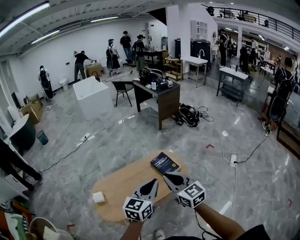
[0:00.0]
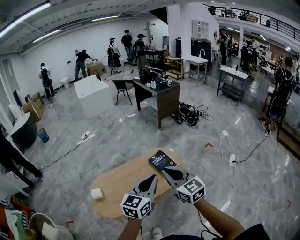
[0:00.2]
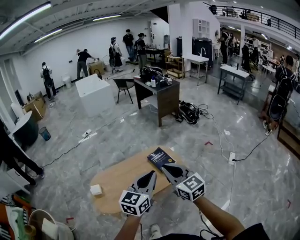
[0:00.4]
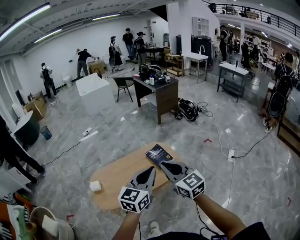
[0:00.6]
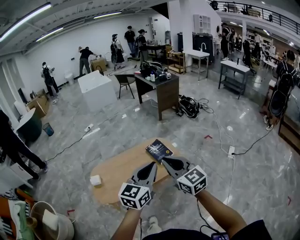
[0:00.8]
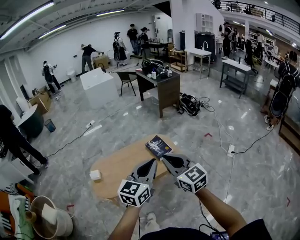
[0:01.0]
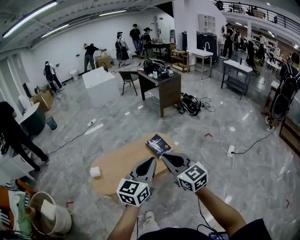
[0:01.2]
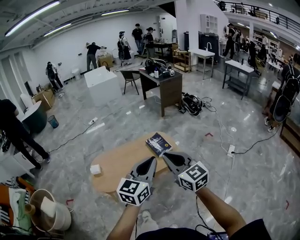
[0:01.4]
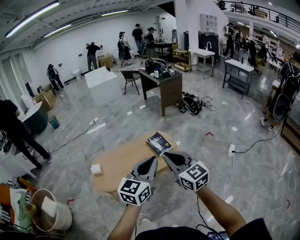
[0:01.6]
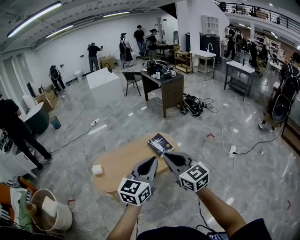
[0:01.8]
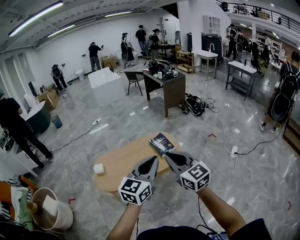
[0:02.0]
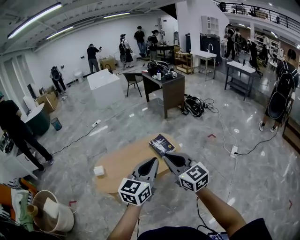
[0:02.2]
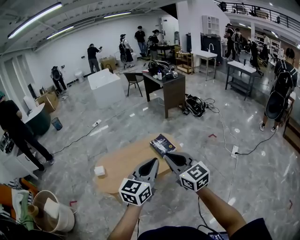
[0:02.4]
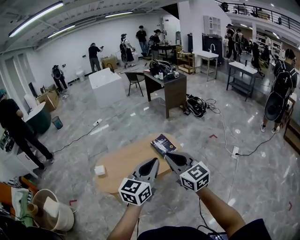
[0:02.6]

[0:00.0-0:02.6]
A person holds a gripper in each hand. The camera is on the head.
0:00.0 to 0:01.2: The right gripper moves backward and to the right, roughly 15 cm. Meanwhile the left gripper is displaced backward, to the right and upward by about 20 cm.
0:01.2 to 0:02.6: The grippers move only a little.

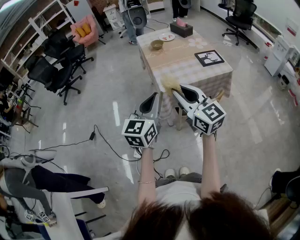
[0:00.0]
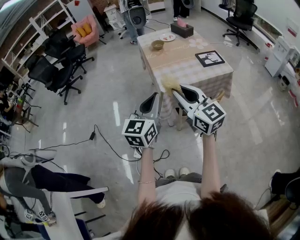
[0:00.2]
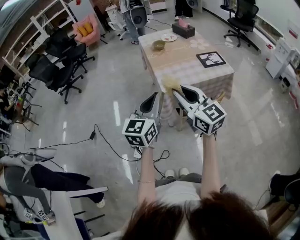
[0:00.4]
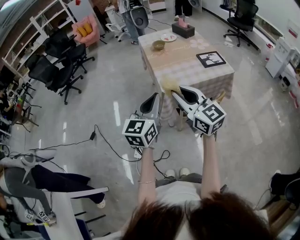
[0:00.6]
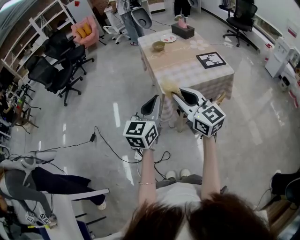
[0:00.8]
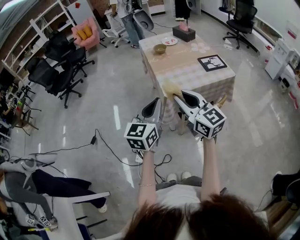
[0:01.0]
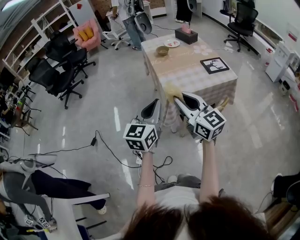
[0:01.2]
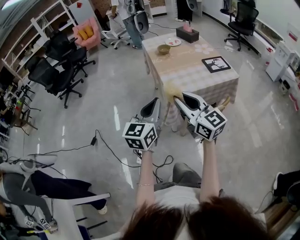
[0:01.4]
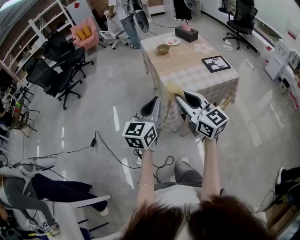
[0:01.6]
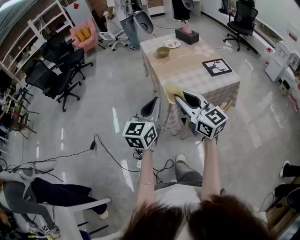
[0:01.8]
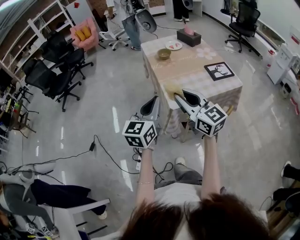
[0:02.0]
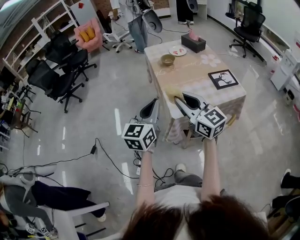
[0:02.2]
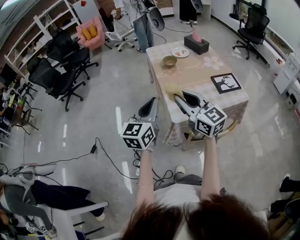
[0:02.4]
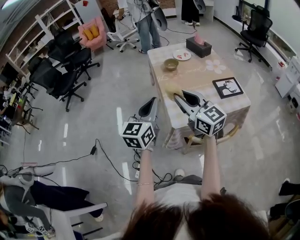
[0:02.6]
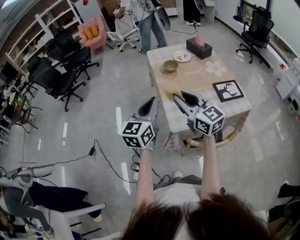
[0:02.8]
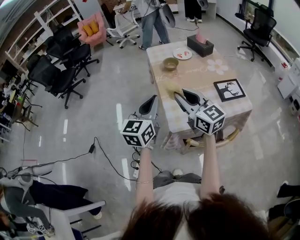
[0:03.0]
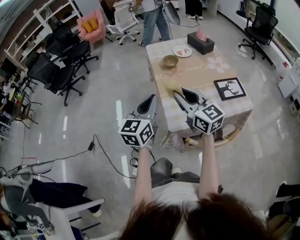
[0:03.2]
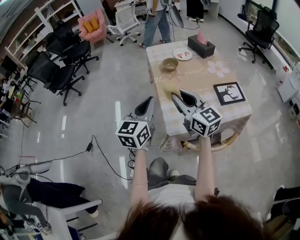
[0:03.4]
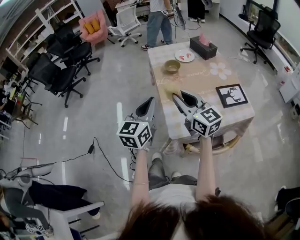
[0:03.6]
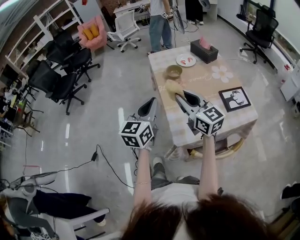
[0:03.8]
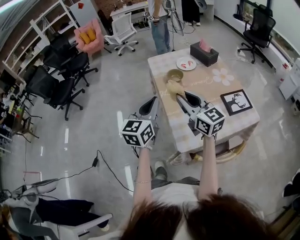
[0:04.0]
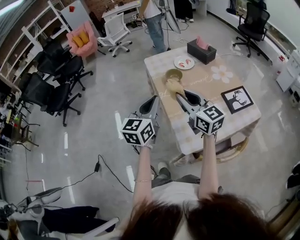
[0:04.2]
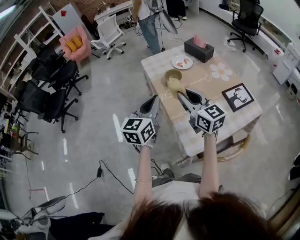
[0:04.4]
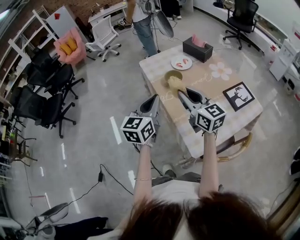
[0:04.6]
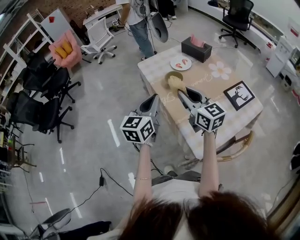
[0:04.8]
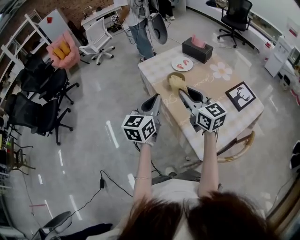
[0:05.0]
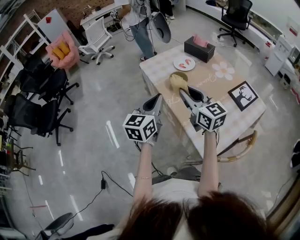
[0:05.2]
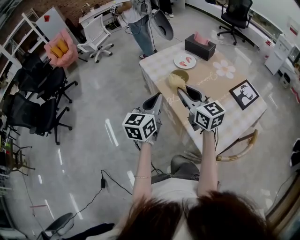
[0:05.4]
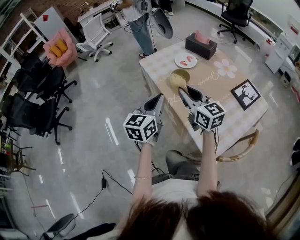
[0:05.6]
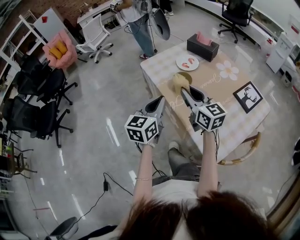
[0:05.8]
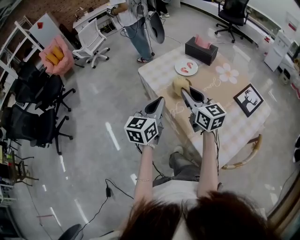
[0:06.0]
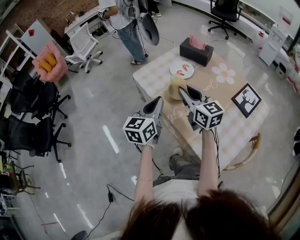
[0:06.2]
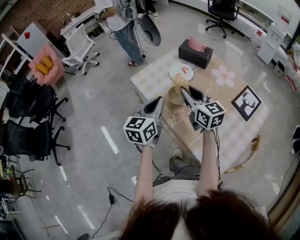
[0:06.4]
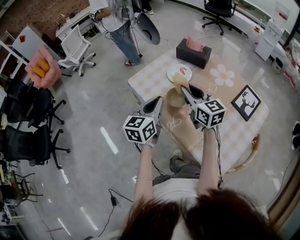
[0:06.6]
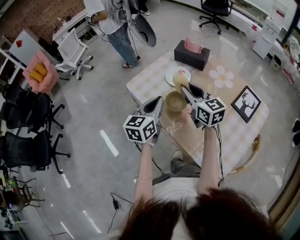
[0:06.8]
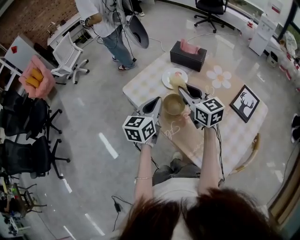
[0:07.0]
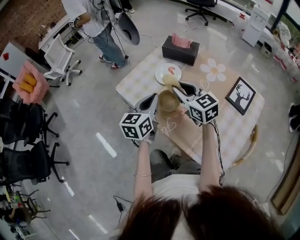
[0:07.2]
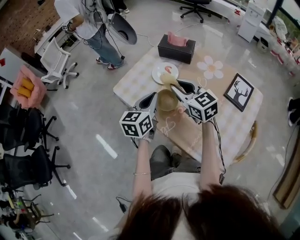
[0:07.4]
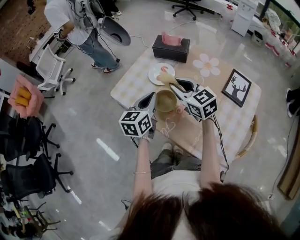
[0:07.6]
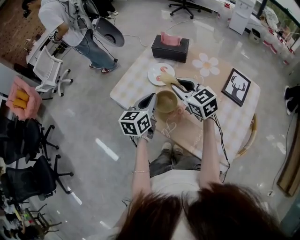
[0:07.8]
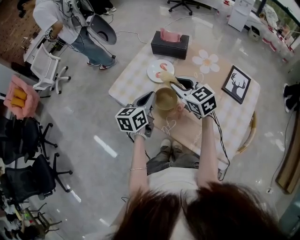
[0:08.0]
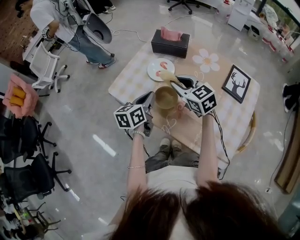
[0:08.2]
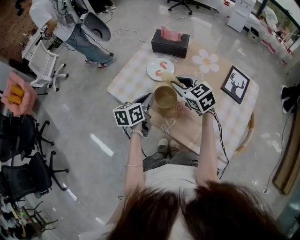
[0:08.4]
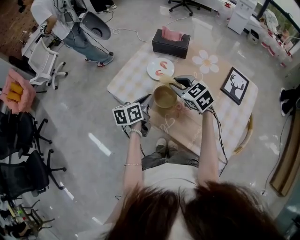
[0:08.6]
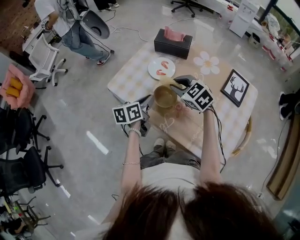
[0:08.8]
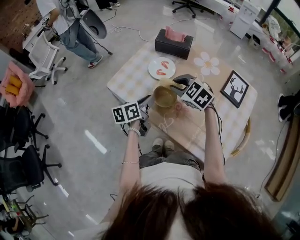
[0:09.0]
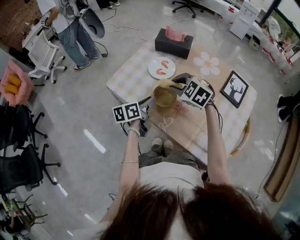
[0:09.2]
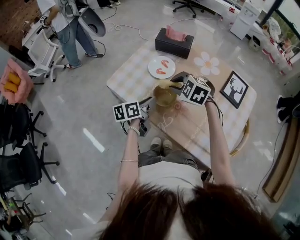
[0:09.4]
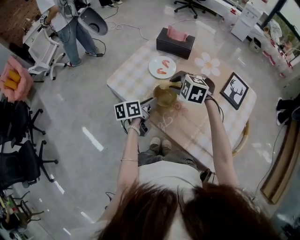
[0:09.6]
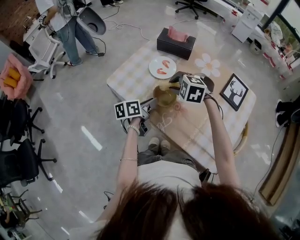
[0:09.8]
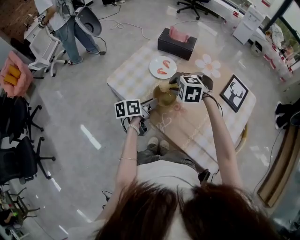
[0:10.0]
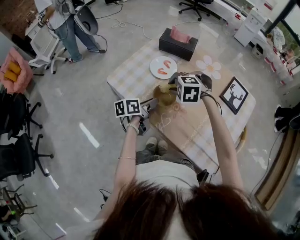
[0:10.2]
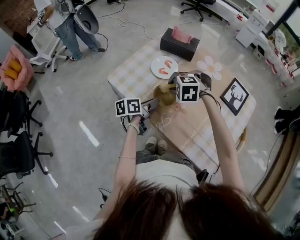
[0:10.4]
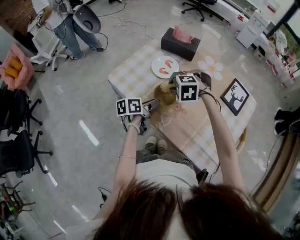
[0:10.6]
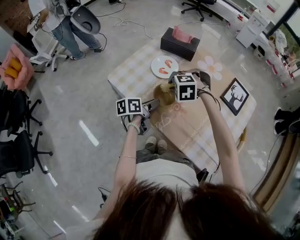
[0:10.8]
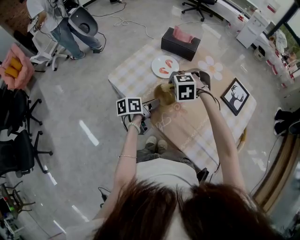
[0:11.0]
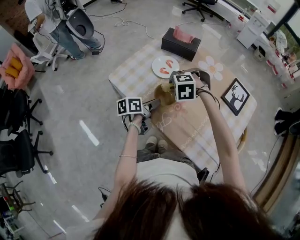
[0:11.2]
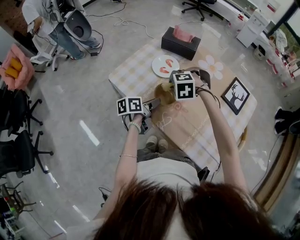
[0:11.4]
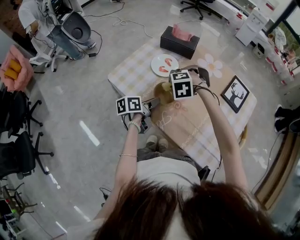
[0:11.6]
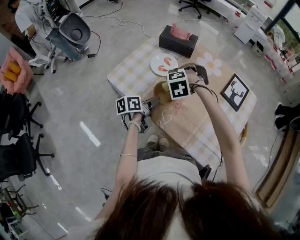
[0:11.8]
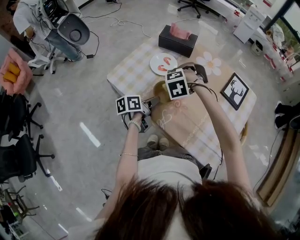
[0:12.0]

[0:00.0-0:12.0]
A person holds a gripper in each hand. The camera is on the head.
0:00.0 to 0:01.6: The left gripper shifts by roughly 5 cm. The right gripper shifts by some 5 cm.
0:01.6 to 0:03.0: Both grippers move forward, roughly 20 cm.
0:03.0 to 0:04.4: Both grippers move forward, about 15 cm.
0:04.4 to 0:06.0: The two grippers go some 15 cm forward.
0:06.0 to 0:07.6: The two grippers go some 15 cm forward.
0:07.6 to 0:09.0: Both grippers travel together downward, some 5 cm. The right gripper changes its angle by some 30 degrees. The left gripper rotates some 30 degrees.
0:09.0 to 0:10.4: The right gripper swivels some 40 degrees.
0:10.4 to 0:12.0: The grippers stay close to where they were, moving slightly.

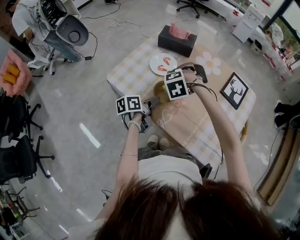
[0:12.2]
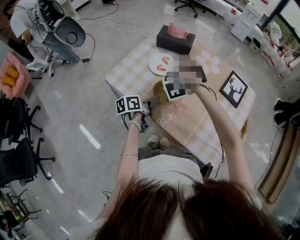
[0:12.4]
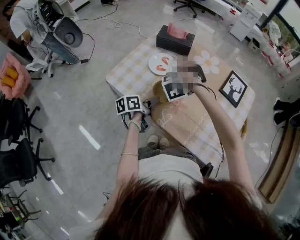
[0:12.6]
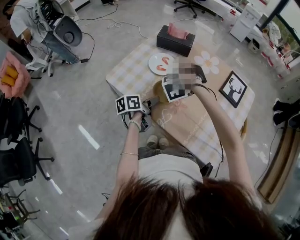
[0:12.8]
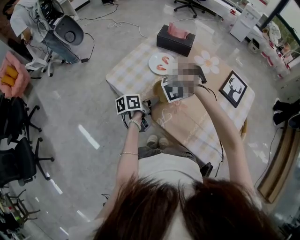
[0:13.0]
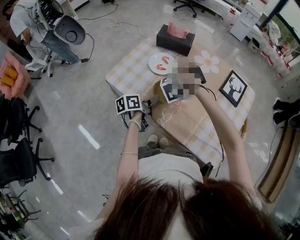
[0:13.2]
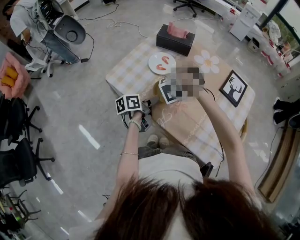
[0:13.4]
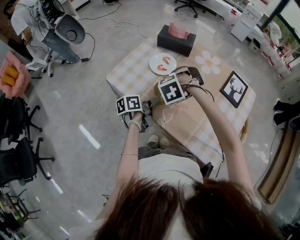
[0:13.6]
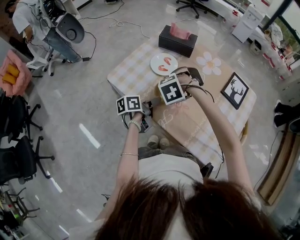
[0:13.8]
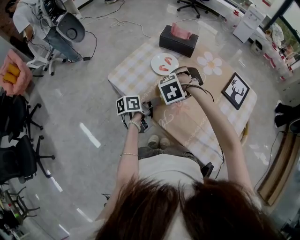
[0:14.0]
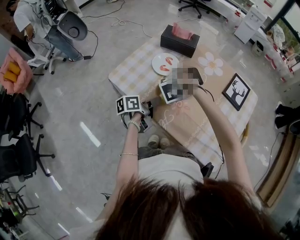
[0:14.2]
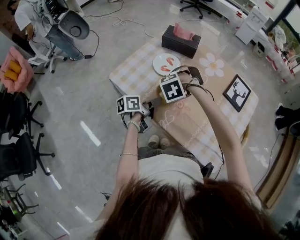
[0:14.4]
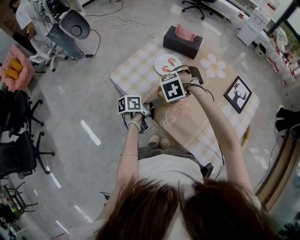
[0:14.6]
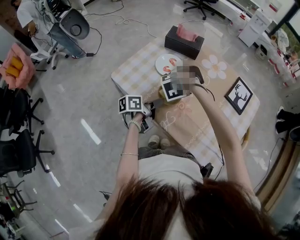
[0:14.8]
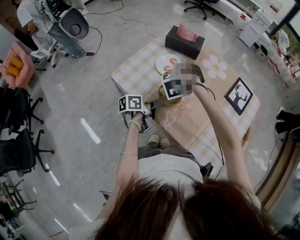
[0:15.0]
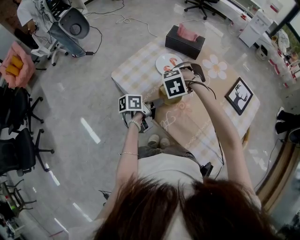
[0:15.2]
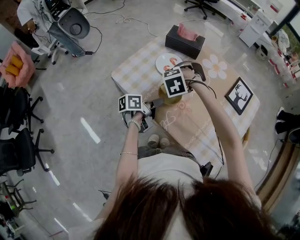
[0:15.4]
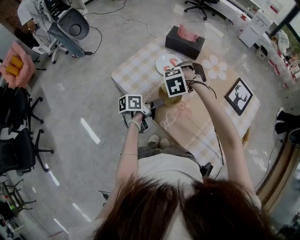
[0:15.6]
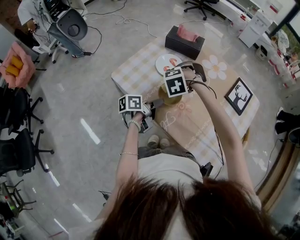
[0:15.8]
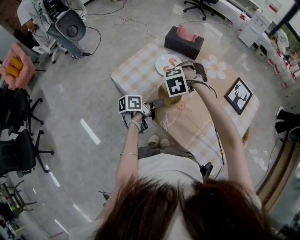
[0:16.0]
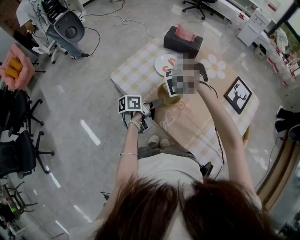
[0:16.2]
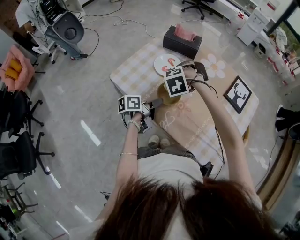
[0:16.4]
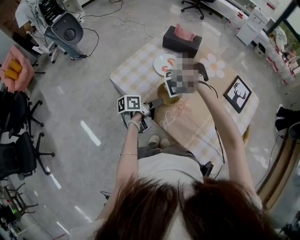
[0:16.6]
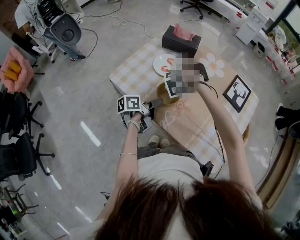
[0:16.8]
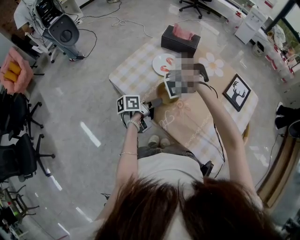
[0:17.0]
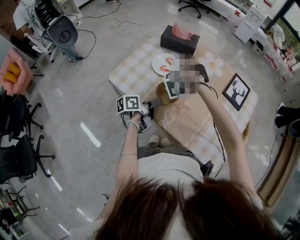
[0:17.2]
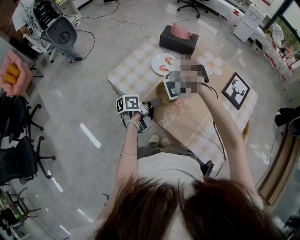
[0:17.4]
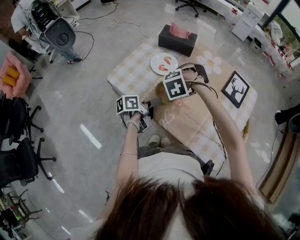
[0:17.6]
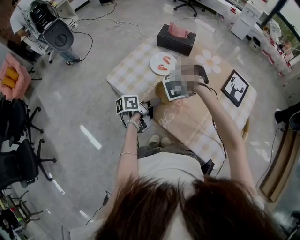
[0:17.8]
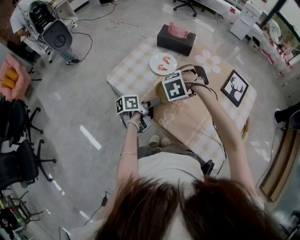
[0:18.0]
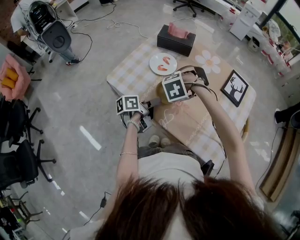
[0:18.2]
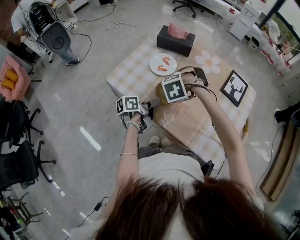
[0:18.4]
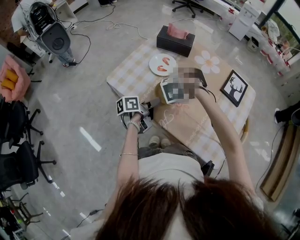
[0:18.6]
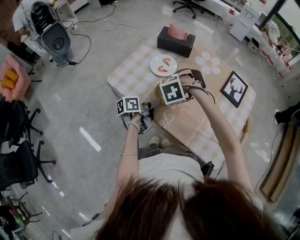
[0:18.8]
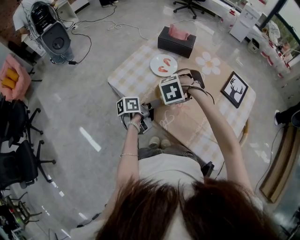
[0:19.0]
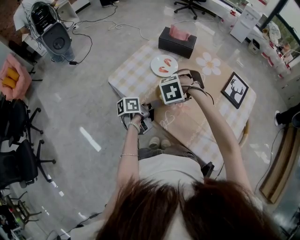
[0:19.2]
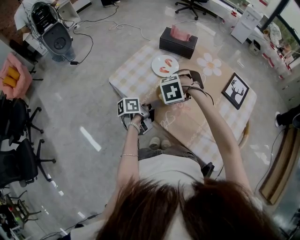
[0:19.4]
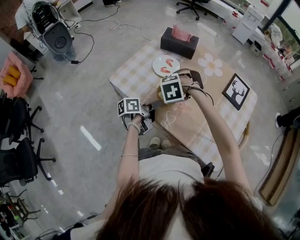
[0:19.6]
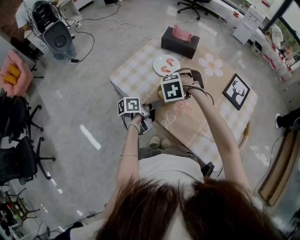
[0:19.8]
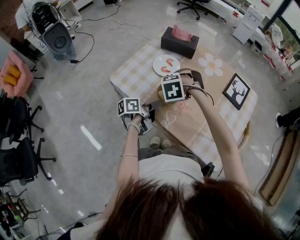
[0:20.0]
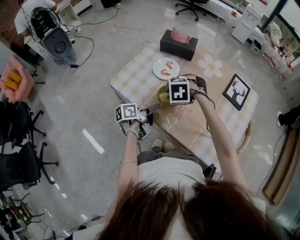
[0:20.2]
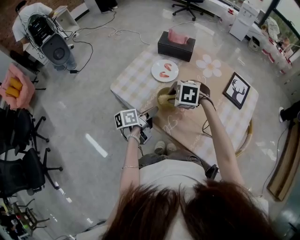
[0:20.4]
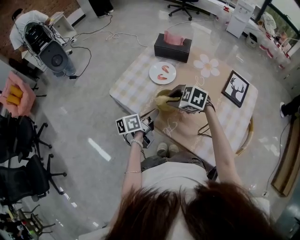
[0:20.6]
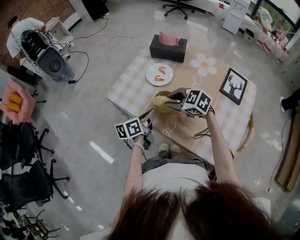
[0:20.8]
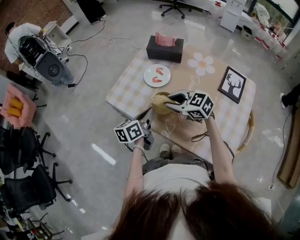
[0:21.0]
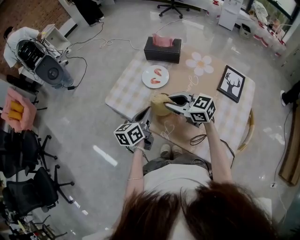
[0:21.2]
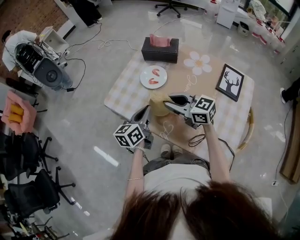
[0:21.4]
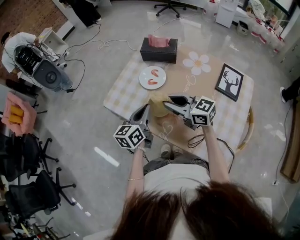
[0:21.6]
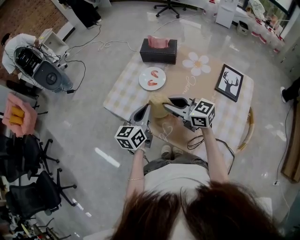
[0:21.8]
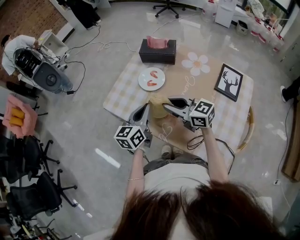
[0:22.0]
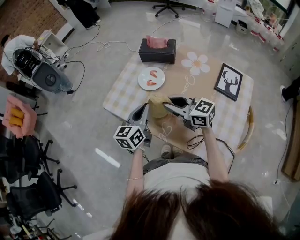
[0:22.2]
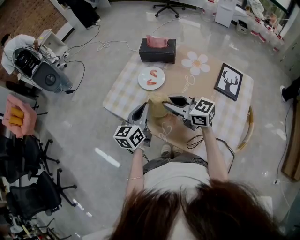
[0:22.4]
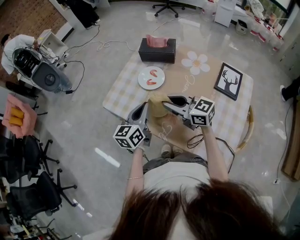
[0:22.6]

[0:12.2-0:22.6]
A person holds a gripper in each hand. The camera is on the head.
0:12.2 to 0:13.6: The grippers make only small movements.
0:13.6 to 0:15.2: The right gripper shifts by some 5 cm.
0:15.2 to 0:19.6: The grippers move only a little.
0:19.6 to 0:21.2: The two grippers go approximately 5 cm upward. The left gripper turns by roughly 40 degrees, and closes up; the right gripper tips its fingers upward by about 70 degrees.
0:21.2 to 0:22.6: The grippers stay close to where they were, moving slightly.
